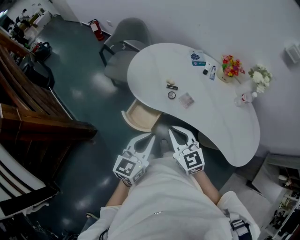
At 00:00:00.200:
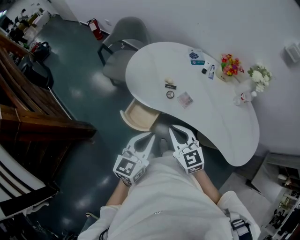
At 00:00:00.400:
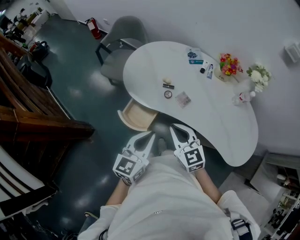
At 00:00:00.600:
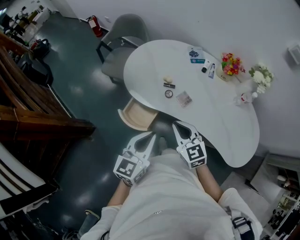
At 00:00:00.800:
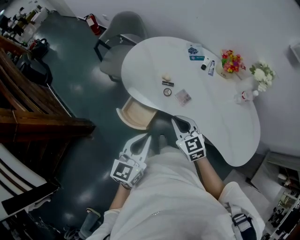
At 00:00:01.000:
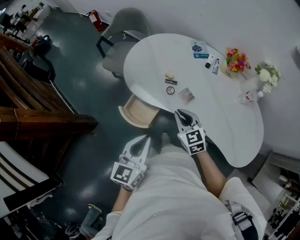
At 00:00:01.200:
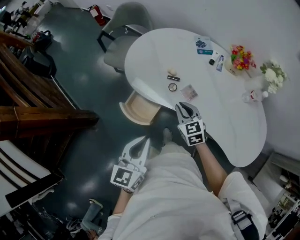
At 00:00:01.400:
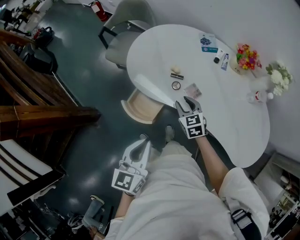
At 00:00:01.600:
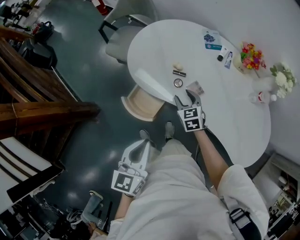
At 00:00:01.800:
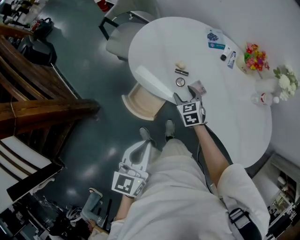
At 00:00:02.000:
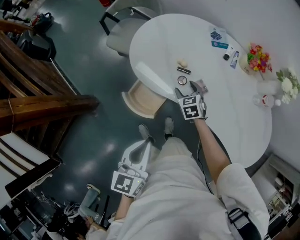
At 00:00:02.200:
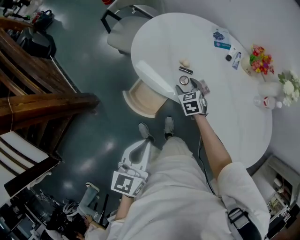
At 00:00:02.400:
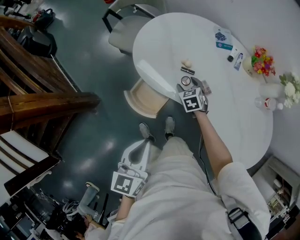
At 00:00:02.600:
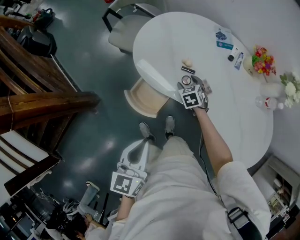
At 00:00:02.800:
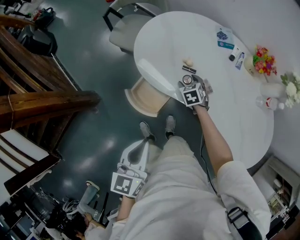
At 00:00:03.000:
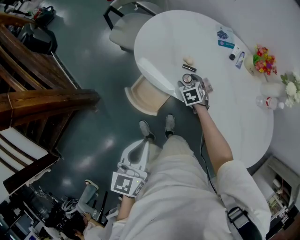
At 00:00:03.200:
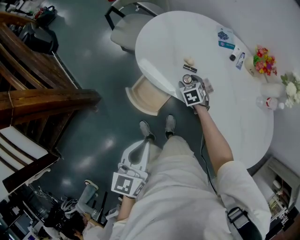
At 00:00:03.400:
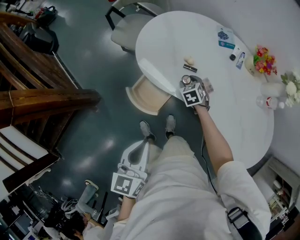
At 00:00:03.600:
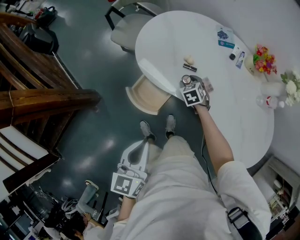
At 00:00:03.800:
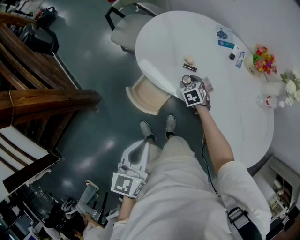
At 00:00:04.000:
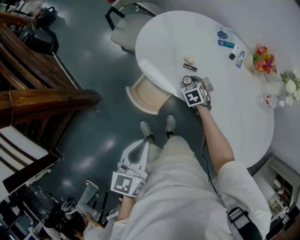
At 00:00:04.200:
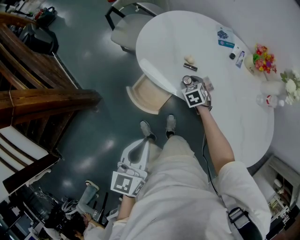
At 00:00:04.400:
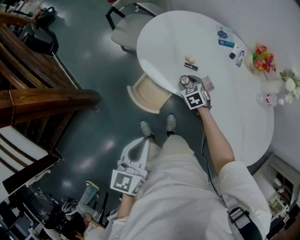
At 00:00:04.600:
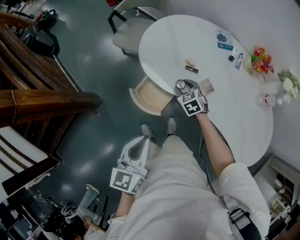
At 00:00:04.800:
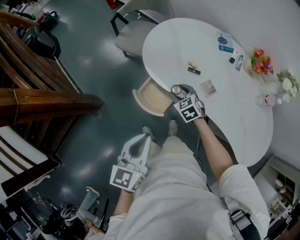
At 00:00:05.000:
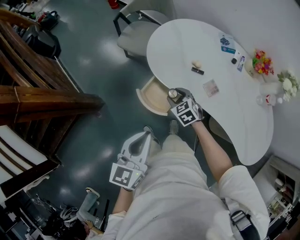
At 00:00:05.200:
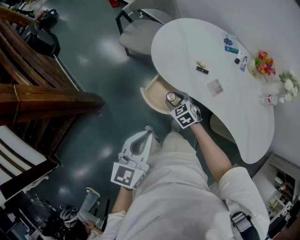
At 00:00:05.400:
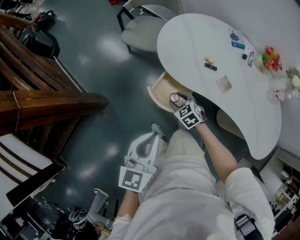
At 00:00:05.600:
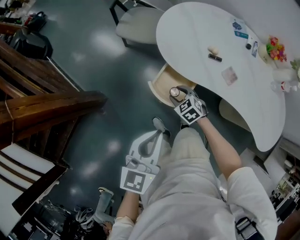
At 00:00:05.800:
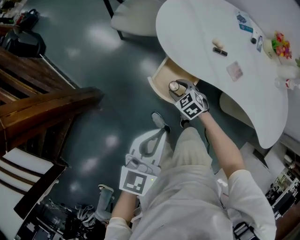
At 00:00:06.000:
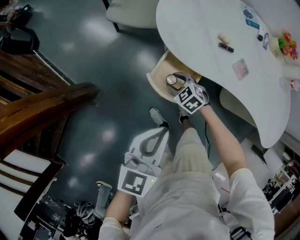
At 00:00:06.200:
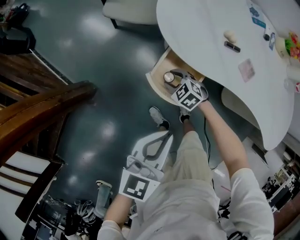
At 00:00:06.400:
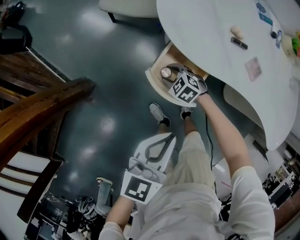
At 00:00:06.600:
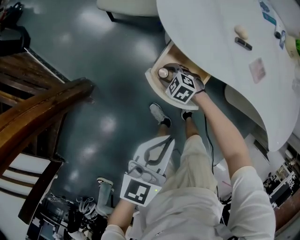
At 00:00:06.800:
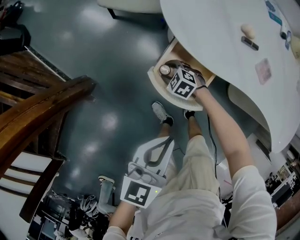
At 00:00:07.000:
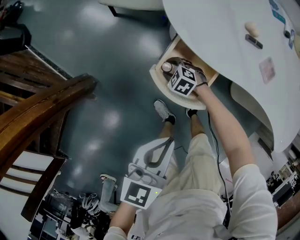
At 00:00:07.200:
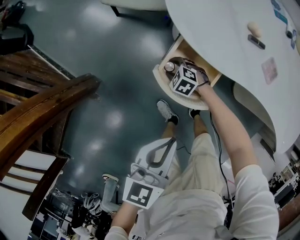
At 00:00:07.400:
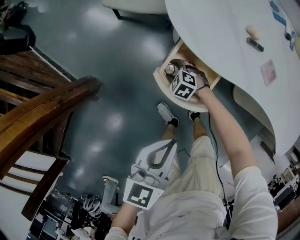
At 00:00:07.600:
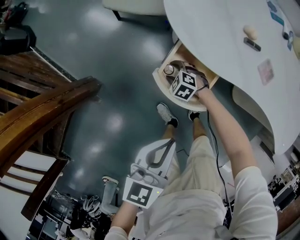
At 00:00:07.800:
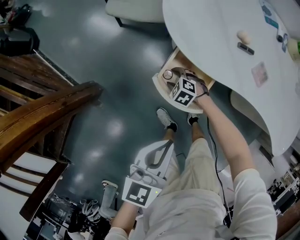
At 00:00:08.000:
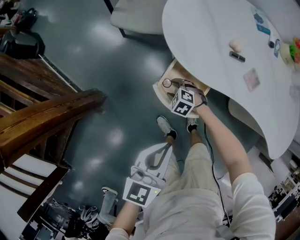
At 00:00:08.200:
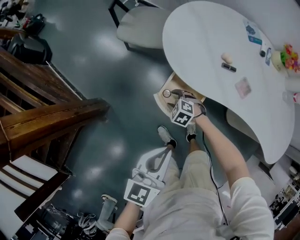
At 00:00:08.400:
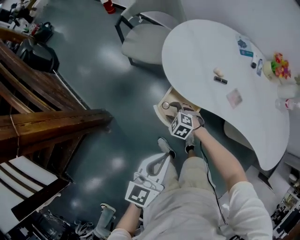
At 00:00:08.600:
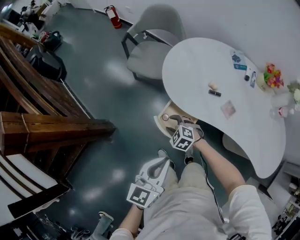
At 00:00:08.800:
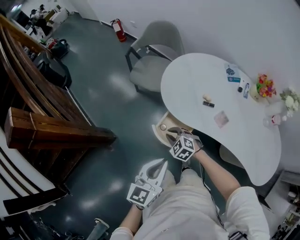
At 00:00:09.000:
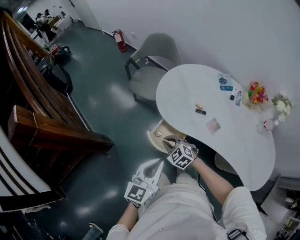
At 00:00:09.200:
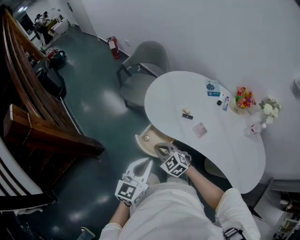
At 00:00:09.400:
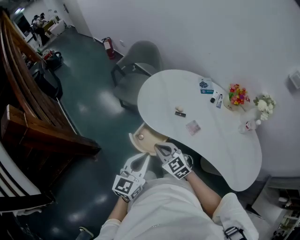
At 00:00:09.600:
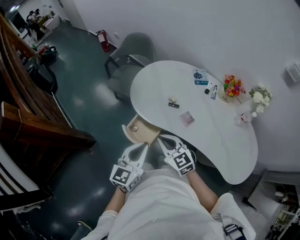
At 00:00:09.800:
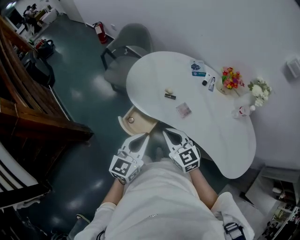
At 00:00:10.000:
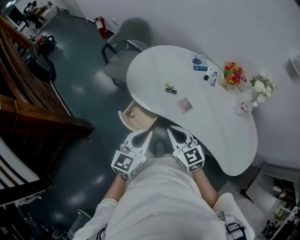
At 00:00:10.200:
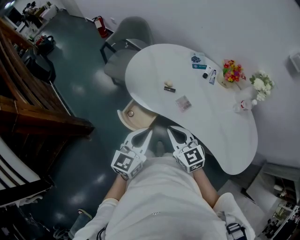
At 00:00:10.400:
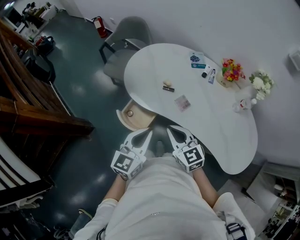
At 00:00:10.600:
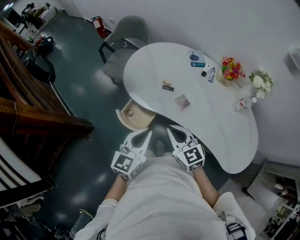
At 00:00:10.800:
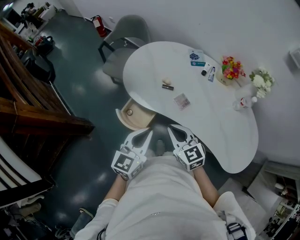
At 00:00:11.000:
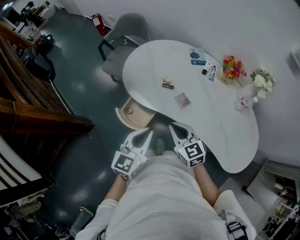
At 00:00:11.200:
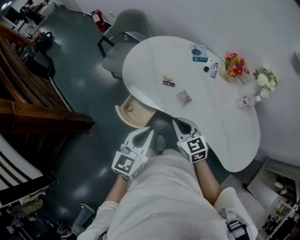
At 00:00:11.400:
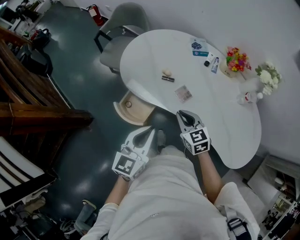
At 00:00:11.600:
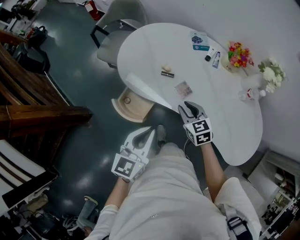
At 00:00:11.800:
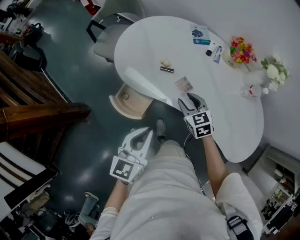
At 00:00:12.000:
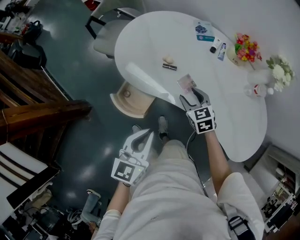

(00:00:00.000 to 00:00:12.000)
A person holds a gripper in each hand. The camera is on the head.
00:00:00.000 - 00:00:01.600: The right gripper shifts some 25 cm downward and forward, changes its angle by some 20 degrees, and opens up.
00:00:01.600 - 00:00:03.000: The right gripper shifts approximately 10 cm downward and forward.
00:00:03.000 - 00:00:04.400: There are only small adjustments of the grippers.
00:00:04.400 - 00:00:06.000: The left gripper is displaced to the left and downward by approximately 15 cm, and rotates approximately 20 degrees; the right gripper travels to the left and downward by about 25 cm.
00:00:06.000 - 00:00:07.600: The left gripper travels downward by about 10 cm; the right gripper moves downward, approximately 15 cm.
00:00:07.600 - 00:00:09.000: The left gripper travels upward by approximately 20 cm. The right gripper moves upward, about 35 cm, swivels approximately 20 degrees, and closes its fingers.
00:00:09.000 - 00:00:10.400: The right gripper travels to the right and upward by roughly 25 cm, and swivels approximately 40 degrees; the left gripper goes roughly 15 cm to the right.
00:00:10.400 - 00:00:12.000: The right gripper heads downward, forward and to the right, covering approximately 20 cm, swivels approximately 20 degrees, and opens. Meanwhile the left gripper shifts some 5 cm downward.

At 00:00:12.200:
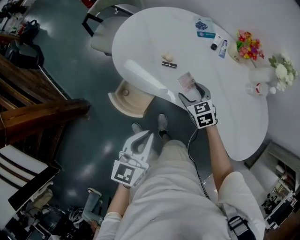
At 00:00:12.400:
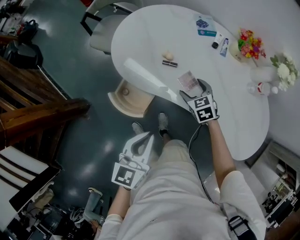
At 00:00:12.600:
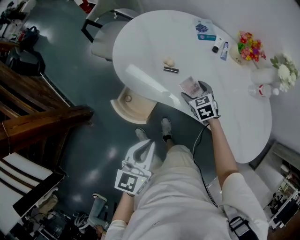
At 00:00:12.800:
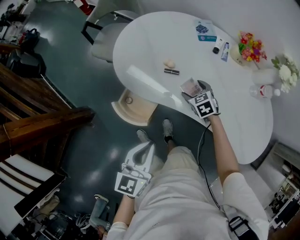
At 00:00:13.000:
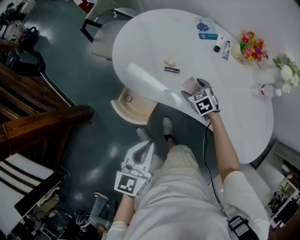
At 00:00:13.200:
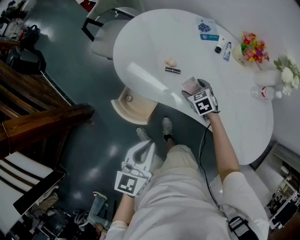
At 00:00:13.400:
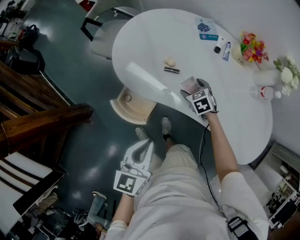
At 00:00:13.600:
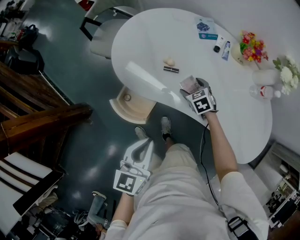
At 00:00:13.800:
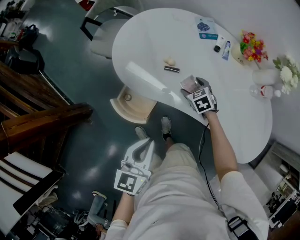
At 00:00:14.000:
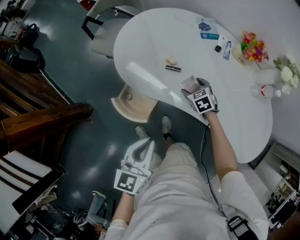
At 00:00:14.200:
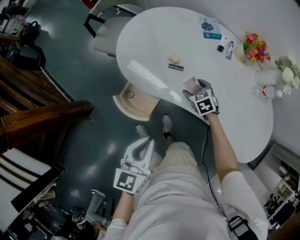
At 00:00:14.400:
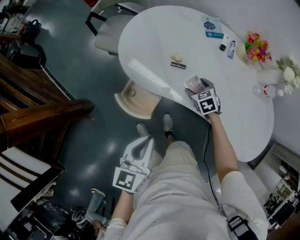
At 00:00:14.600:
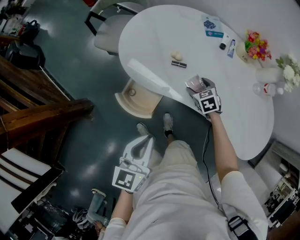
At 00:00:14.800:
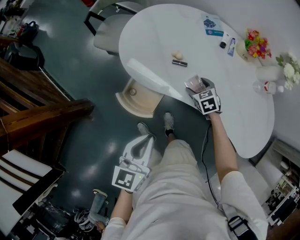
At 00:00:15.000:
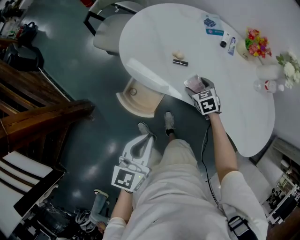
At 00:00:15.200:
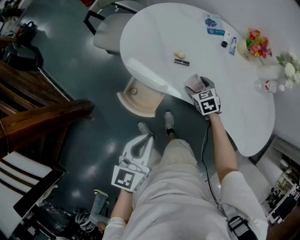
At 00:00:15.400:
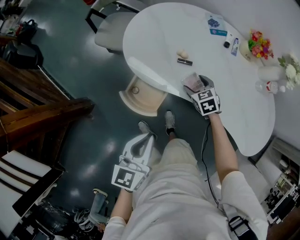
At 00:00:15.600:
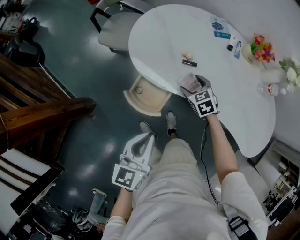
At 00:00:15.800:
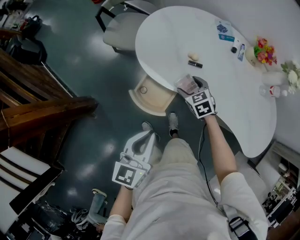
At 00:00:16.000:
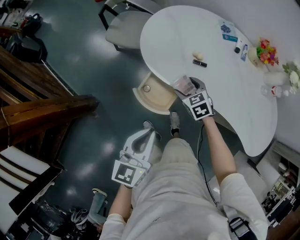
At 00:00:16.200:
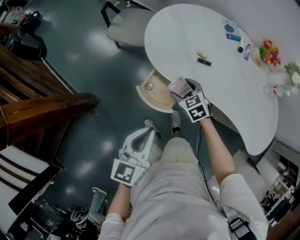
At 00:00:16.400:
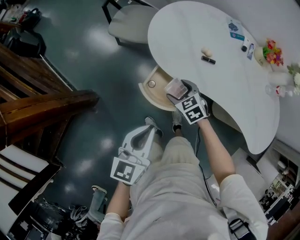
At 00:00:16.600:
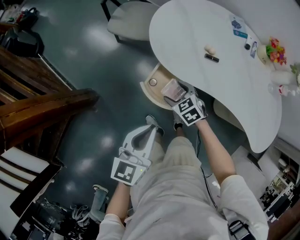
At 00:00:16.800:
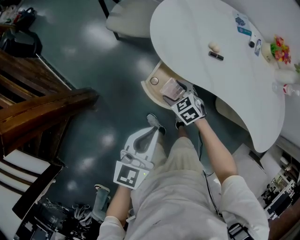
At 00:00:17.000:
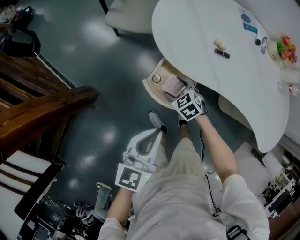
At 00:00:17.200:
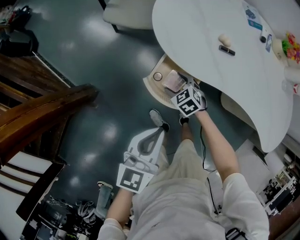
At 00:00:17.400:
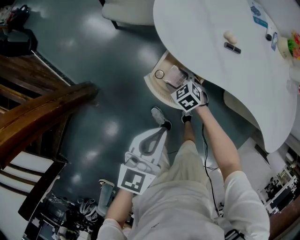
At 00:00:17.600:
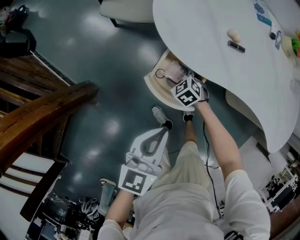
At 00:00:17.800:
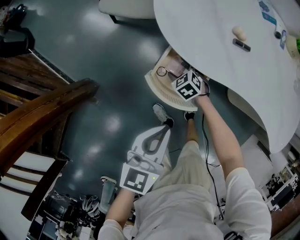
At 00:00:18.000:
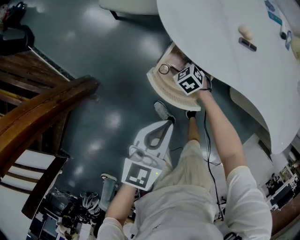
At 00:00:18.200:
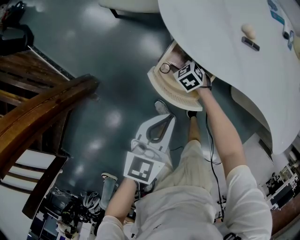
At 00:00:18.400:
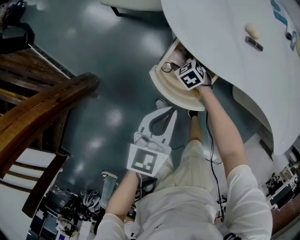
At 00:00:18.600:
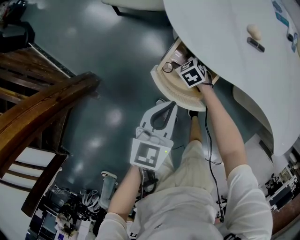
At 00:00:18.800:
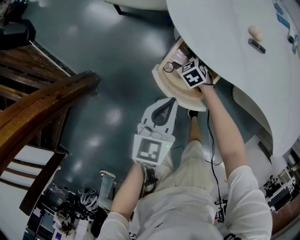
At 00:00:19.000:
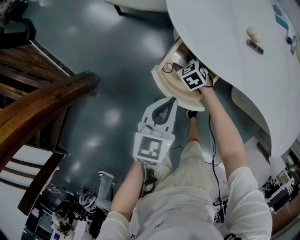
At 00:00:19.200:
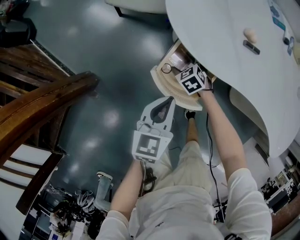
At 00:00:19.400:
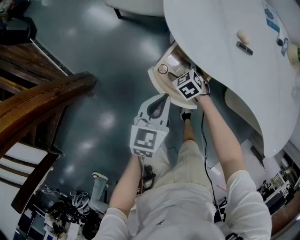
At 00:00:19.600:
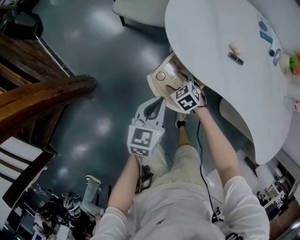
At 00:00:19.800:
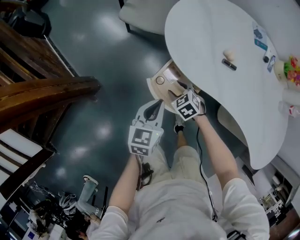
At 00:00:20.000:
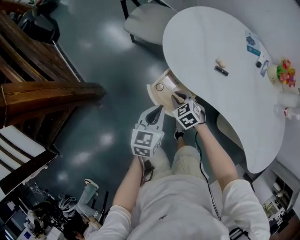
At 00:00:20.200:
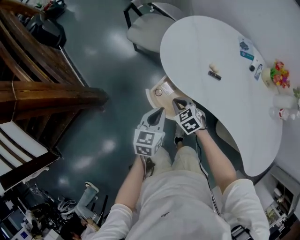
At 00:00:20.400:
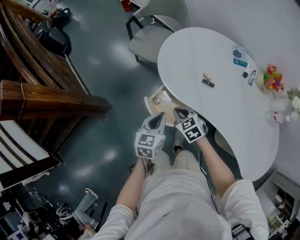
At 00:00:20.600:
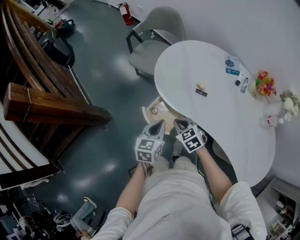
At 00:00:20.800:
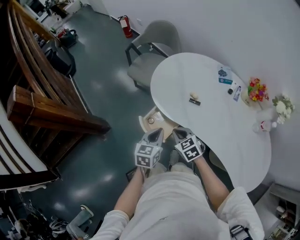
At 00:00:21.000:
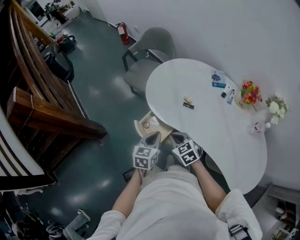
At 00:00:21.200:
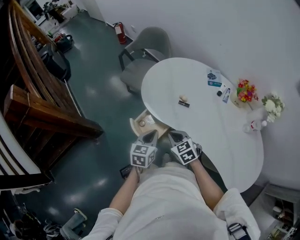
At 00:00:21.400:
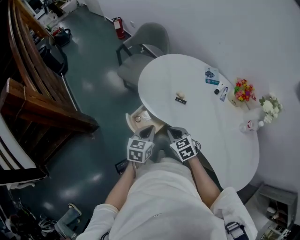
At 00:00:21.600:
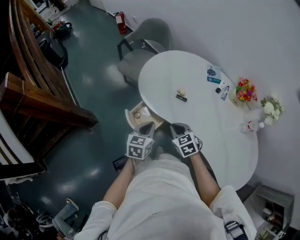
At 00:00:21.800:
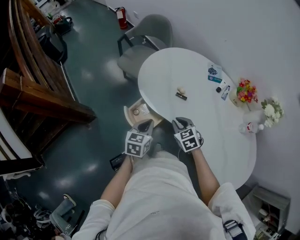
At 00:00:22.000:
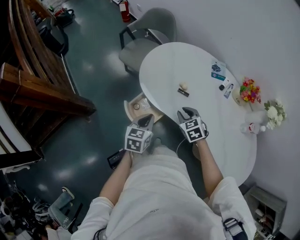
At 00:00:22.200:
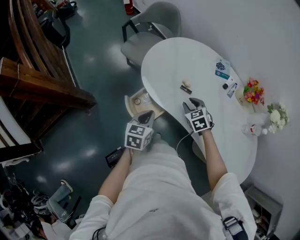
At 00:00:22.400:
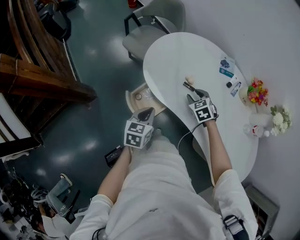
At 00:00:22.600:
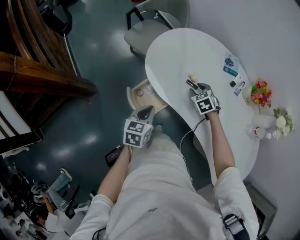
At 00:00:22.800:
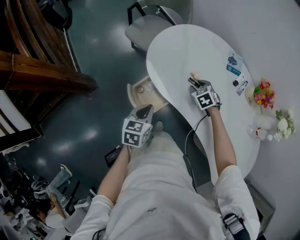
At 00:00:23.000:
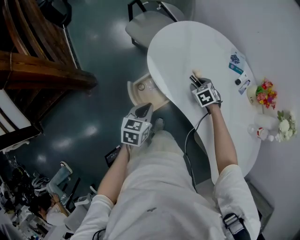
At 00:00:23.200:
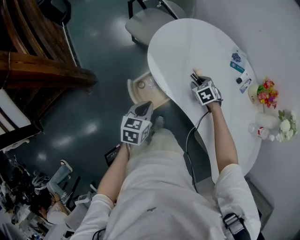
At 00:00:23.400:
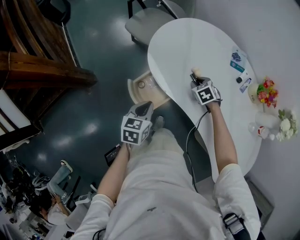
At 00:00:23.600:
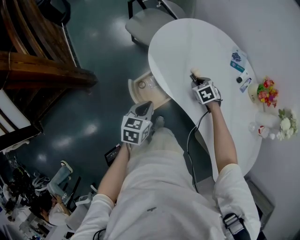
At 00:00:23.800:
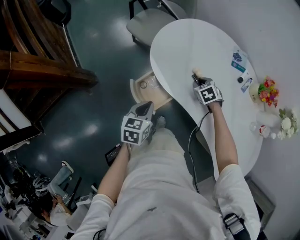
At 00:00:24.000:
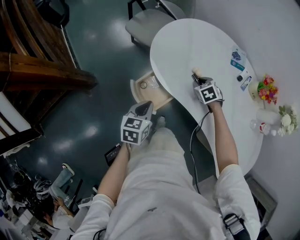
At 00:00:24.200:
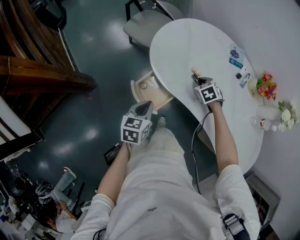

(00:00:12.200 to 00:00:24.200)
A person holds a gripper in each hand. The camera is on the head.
00:00:12.200 - 00:00:13.800: The right gripper moves downward, roughly 10 cm.
00:00:13.800 - 00:00:15.200: The left gripper heads to the left, covering roughly 5 cm.
00:00:15.200 - 00:00:16.600: The left gripper goes some 15 cm to the left, while the right gripper goes some 25 cm to the left.
00:00:16.600 - 00:00:18.200: The right gripper heads downward, covering about 25 cm. The left gripper goes about 15 cm downward.
00:00:18.200 - 00:00:19.800: The right gripper travels upward and backward by roughly 15 cm.
00:00:19.800 - 00:00:21.200: The left gripper shifts roughly 20 cm to the right, upward and backward. Meanwhile the right gripper goes approximately 30 cm upward, to the right and backward, and closes.
00:00:21.200 - 00:00:22.600: The right gripper heads forward, to the right and downward, covering roughly 25 cm, rotates about 20 degrees, and opens its fingers. Meanwhile the left gripper ends up about 5 cm from where it was.
00:00:22.600 - 00:00:24.200: The grippers move only a little.
